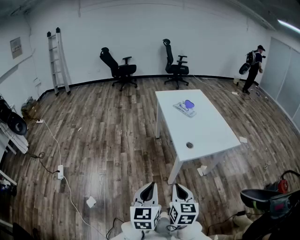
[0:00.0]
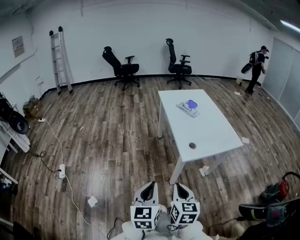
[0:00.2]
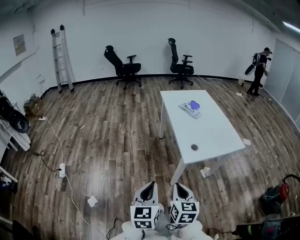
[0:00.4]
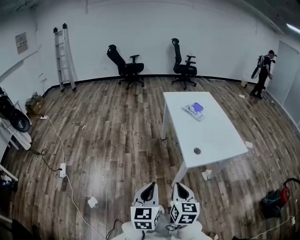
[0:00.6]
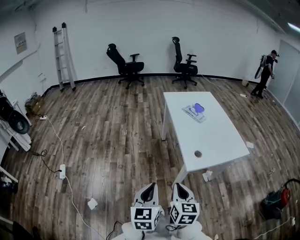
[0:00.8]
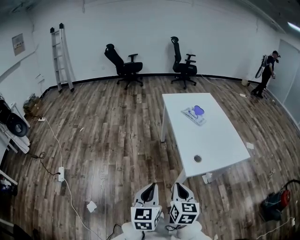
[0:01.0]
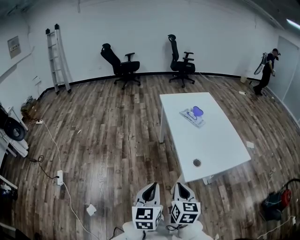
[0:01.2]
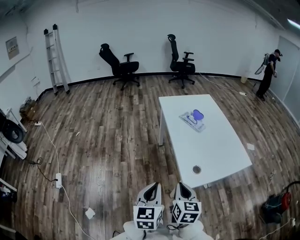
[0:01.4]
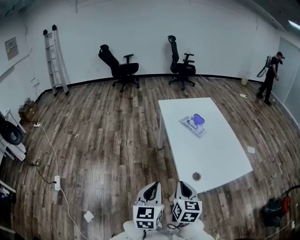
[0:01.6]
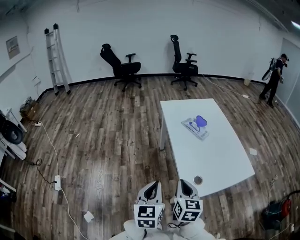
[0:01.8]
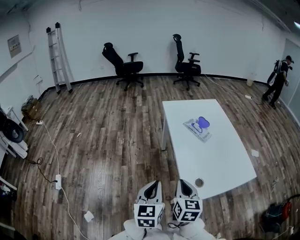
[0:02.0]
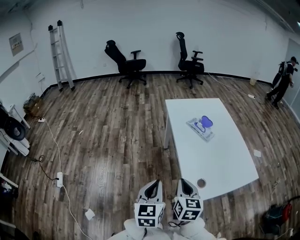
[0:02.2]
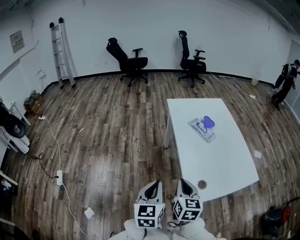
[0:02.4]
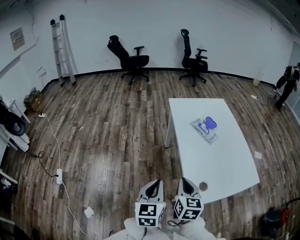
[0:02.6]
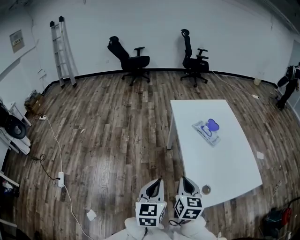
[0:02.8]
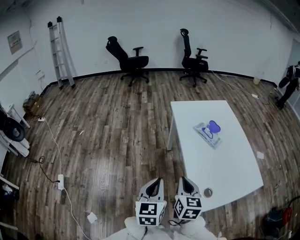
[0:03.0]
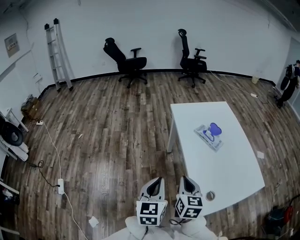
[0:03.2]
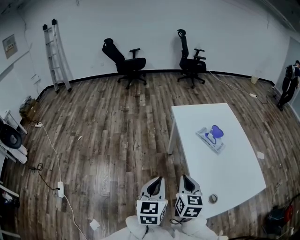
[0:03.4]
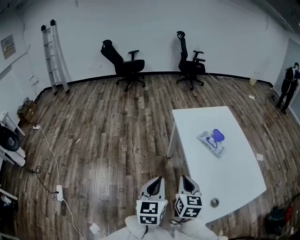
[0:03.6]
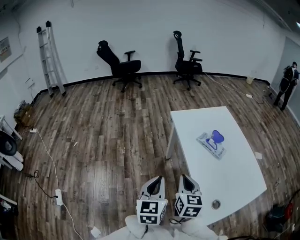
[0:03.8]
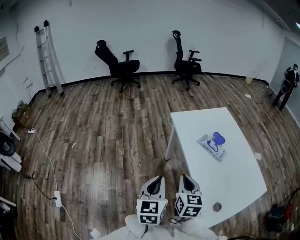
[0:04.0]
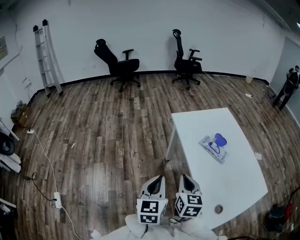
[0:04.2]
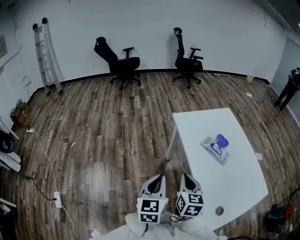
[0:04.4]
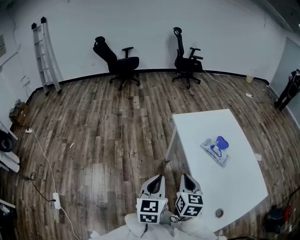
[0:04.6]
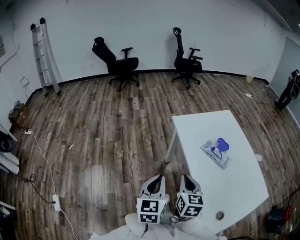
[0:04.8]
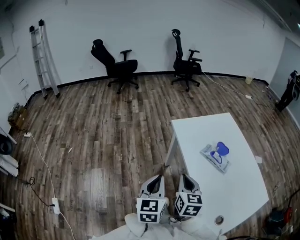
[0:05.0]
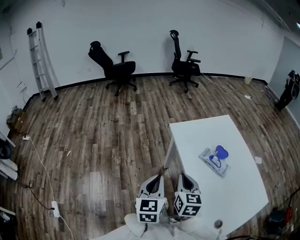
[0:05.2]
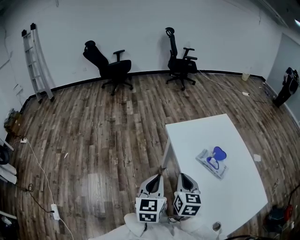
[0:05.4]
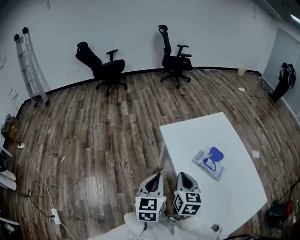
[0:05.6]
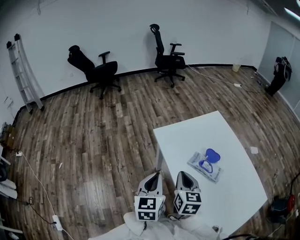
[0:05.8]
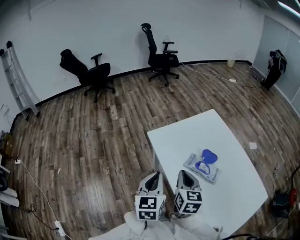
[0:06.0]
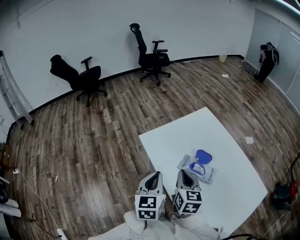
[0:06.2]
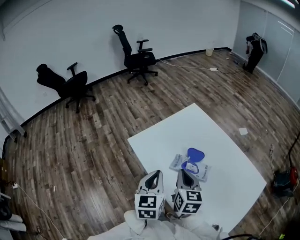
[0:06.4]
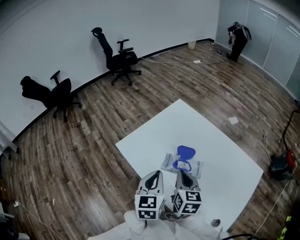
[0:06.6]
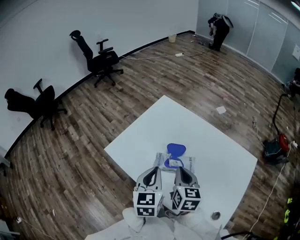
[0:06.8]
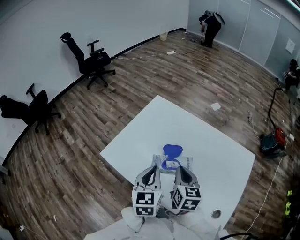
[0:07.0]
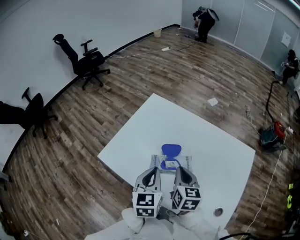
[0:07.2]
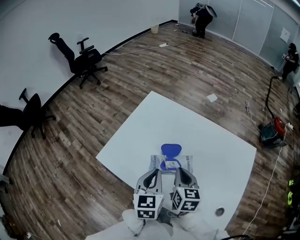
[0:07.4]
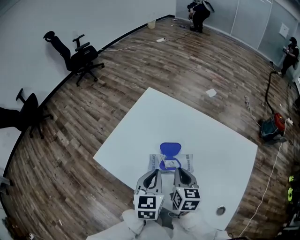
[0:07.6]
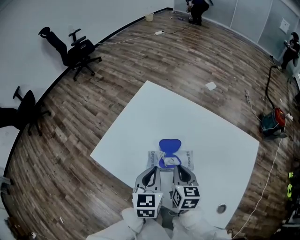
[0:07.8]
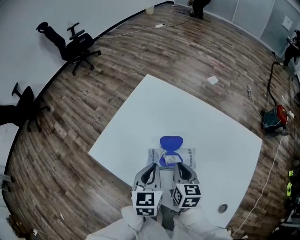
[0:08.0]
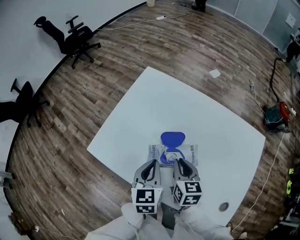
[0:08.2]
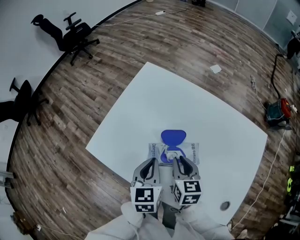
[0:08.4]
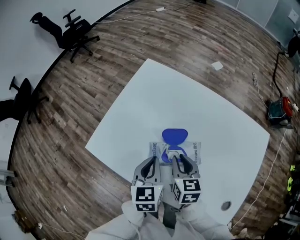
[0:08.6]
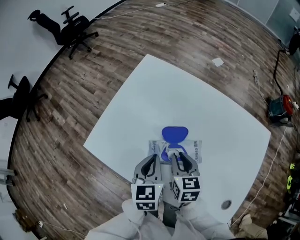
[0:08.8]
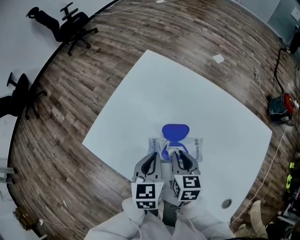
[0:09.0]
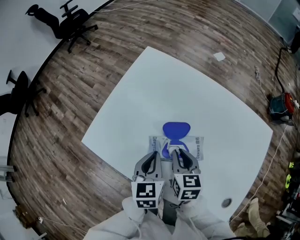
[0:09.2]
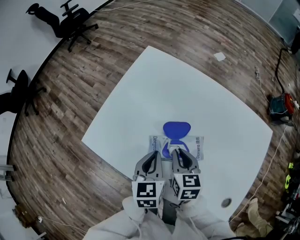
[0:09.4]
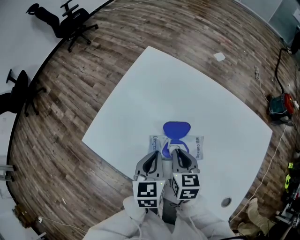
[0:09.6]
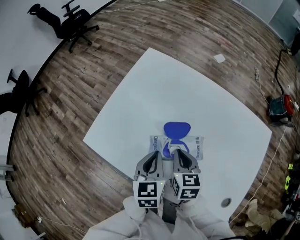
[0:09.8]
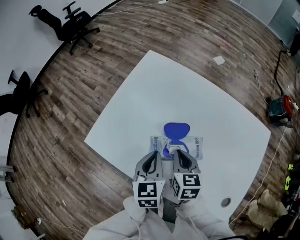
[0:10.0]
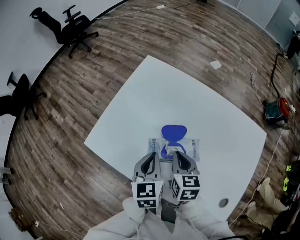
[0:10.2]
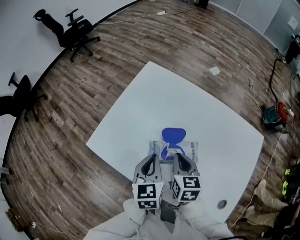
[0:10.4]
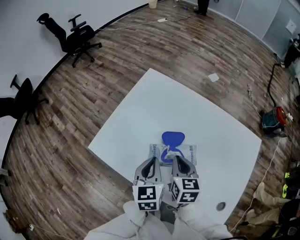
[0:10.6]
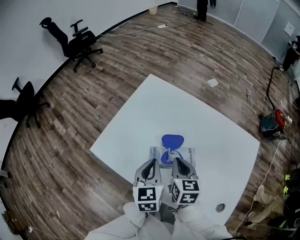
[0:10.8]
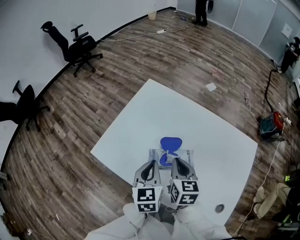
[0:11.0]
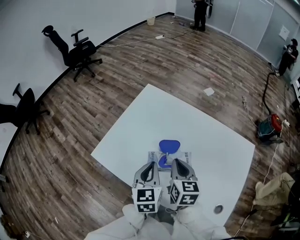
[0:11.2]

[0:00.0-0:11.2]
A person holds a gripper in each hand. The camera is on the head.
0:00.0 to 0:01.6: The two grippers go roughly 25 cm forward.
0:01.6 to 0:03.2: The two grippers go about 15 cm forward and to the left.
0:03.2 to 0:04.8: Both grippers move forward, approximately 15 cm.
0:04.8 to 0:06.4: Both grippers travel together forward and to the right, approximately 25 cm. The left gripper changes its angle by about 20 degrees. The right gripper rotates some 20 degrees.
0:06.4 to 0:08.0: The right gripper travels downward, to the right and forward by roughly 15 cm, and rotates roughly 20 degrees; the left gripper is displaced forward, to the right and downward by roughly 15 cm, and rotates about 30 degrees.
0:08.0 to 0:09.6: The left gripper travels downward by approximately 5 cm.
0:09.6 to 0:11.2: The grippers both shift upward by roughly 10 cm.

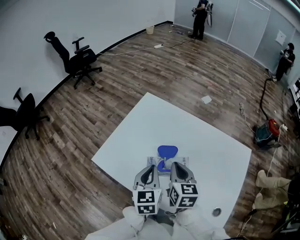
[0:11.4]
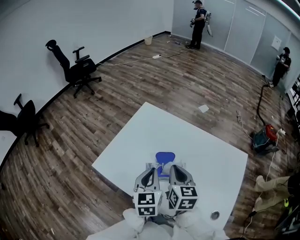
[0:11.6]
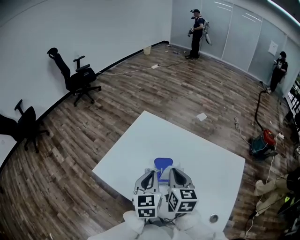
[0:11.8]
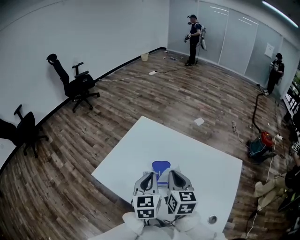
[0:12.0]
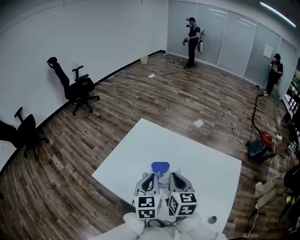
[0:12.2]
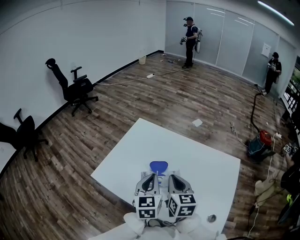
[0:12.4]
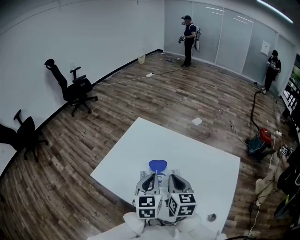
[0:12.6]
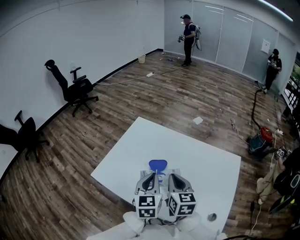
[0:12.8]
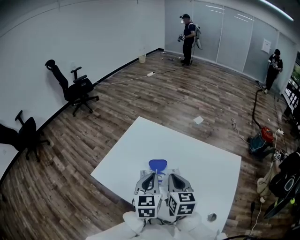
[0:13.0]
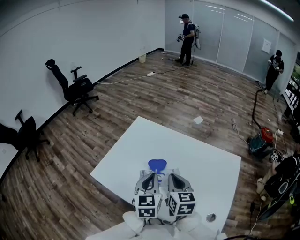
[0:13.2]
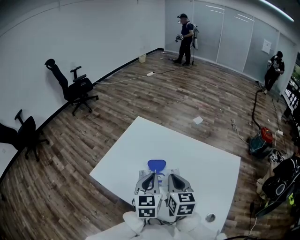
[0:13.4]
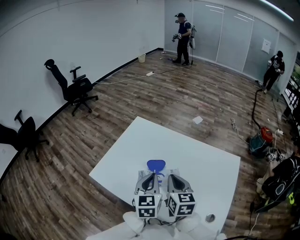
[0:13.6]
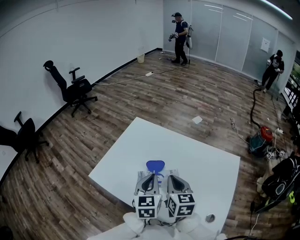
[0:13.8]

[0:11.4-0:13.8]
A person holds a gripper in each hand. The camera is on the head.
0:11.4 to 0:12.6: The left gripper ends up approximately 5 cm from where it was. The right gripper changes place by about 5 cm.
0:12.6 to 0:13.8: The grippers move only a little.

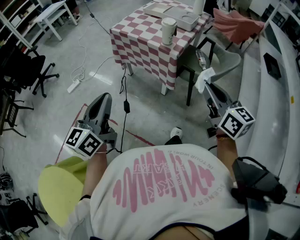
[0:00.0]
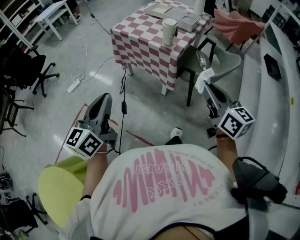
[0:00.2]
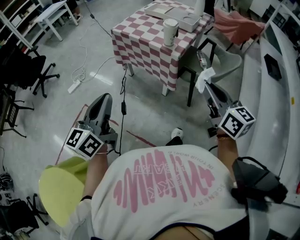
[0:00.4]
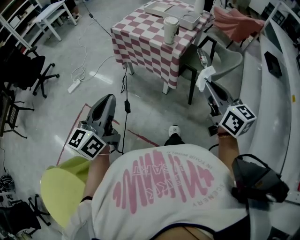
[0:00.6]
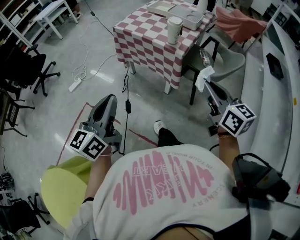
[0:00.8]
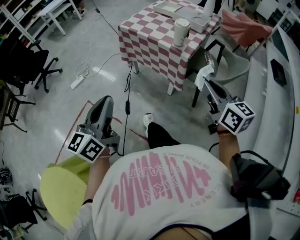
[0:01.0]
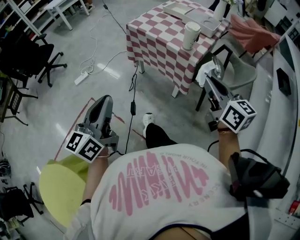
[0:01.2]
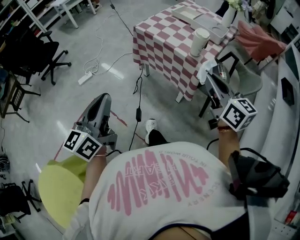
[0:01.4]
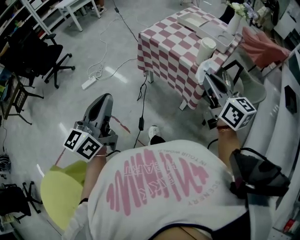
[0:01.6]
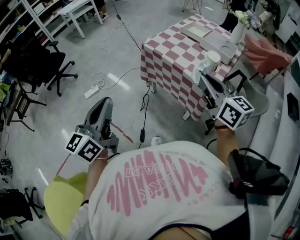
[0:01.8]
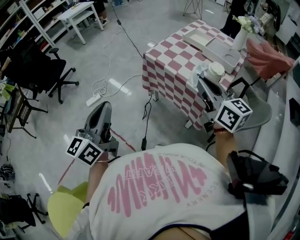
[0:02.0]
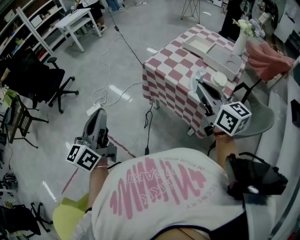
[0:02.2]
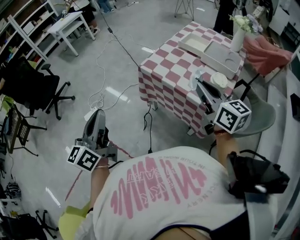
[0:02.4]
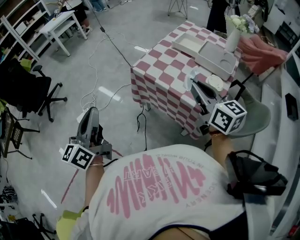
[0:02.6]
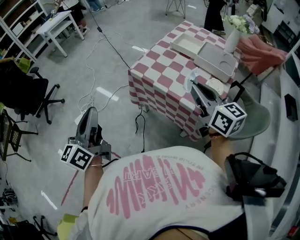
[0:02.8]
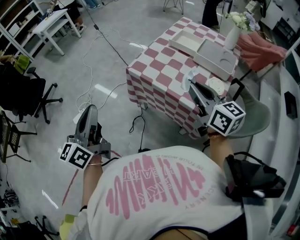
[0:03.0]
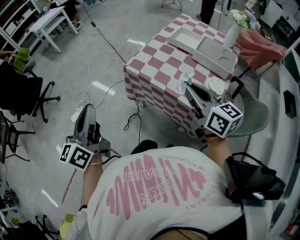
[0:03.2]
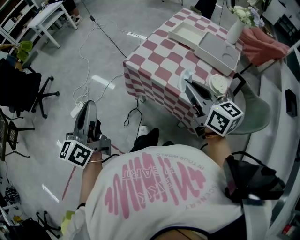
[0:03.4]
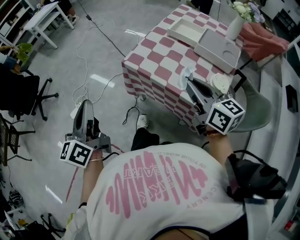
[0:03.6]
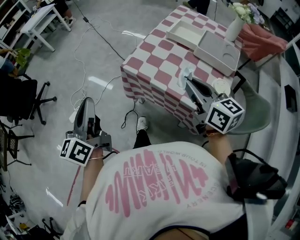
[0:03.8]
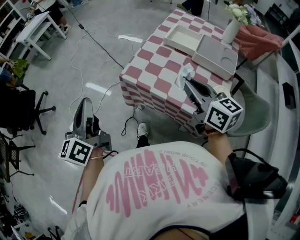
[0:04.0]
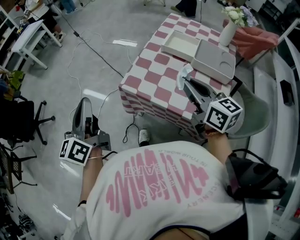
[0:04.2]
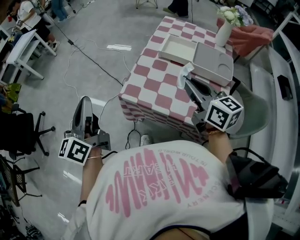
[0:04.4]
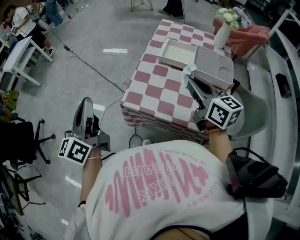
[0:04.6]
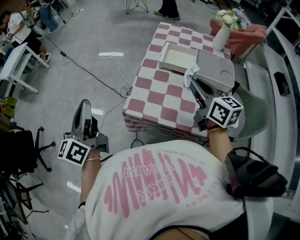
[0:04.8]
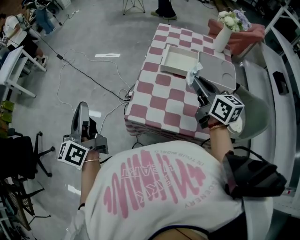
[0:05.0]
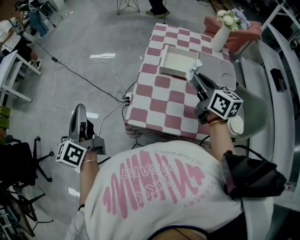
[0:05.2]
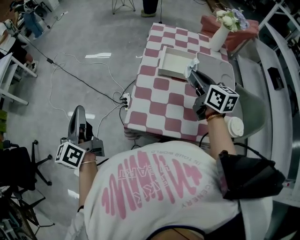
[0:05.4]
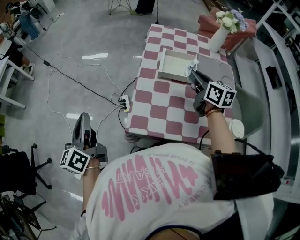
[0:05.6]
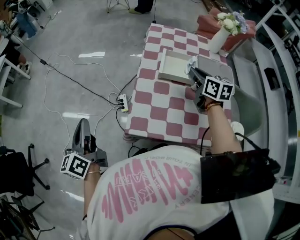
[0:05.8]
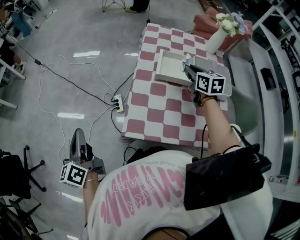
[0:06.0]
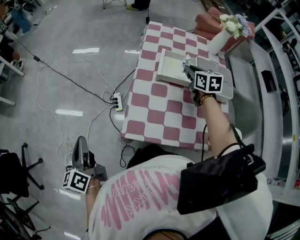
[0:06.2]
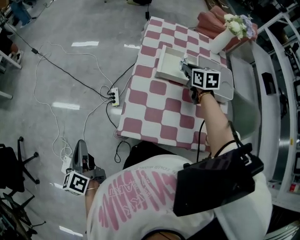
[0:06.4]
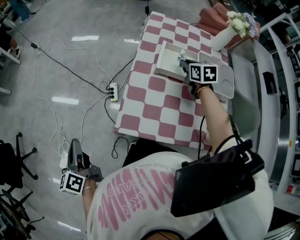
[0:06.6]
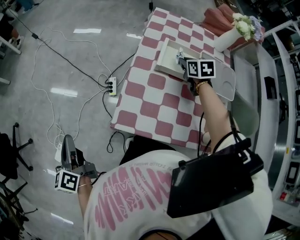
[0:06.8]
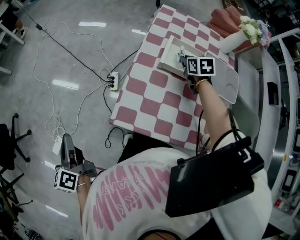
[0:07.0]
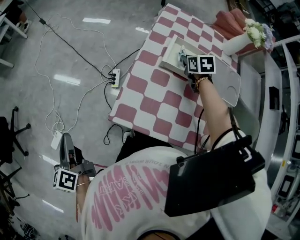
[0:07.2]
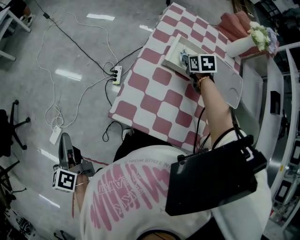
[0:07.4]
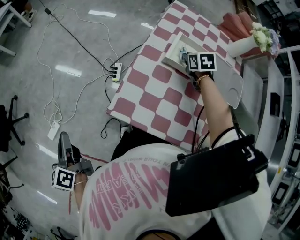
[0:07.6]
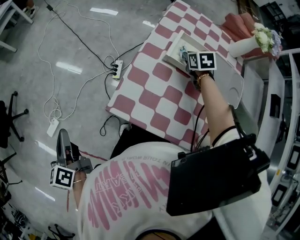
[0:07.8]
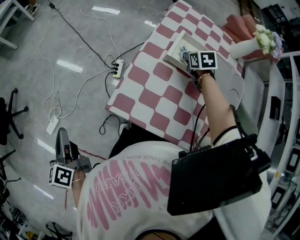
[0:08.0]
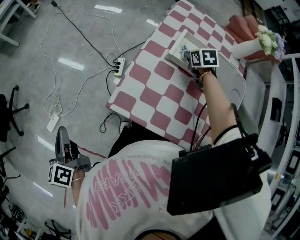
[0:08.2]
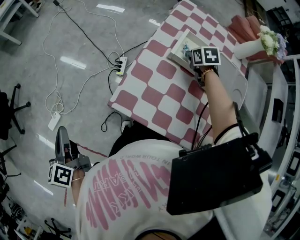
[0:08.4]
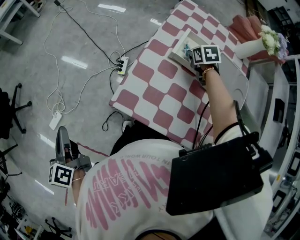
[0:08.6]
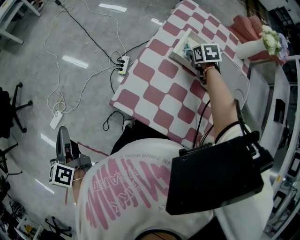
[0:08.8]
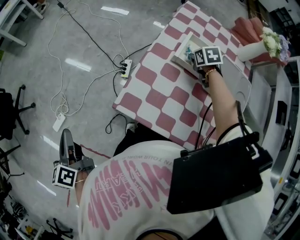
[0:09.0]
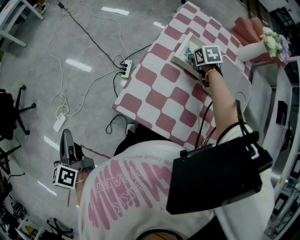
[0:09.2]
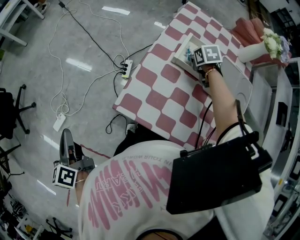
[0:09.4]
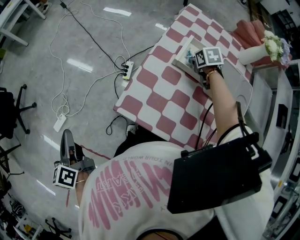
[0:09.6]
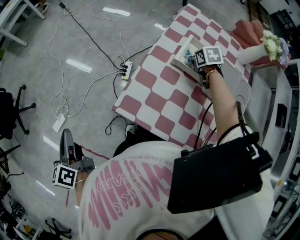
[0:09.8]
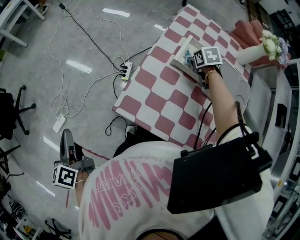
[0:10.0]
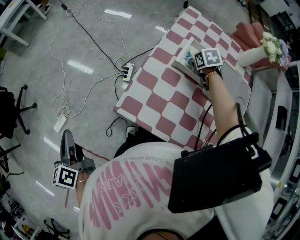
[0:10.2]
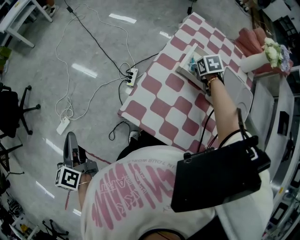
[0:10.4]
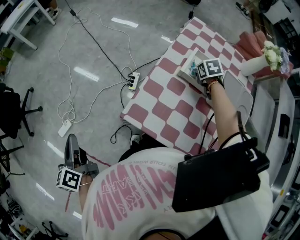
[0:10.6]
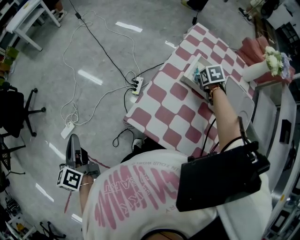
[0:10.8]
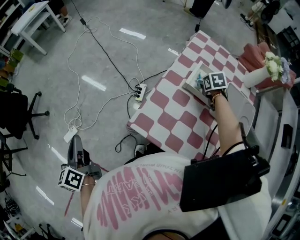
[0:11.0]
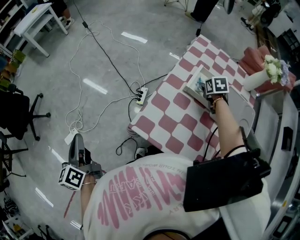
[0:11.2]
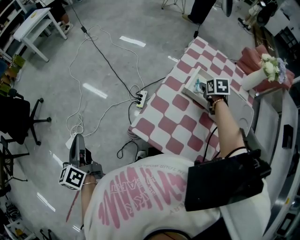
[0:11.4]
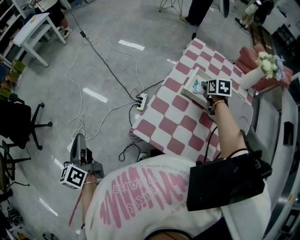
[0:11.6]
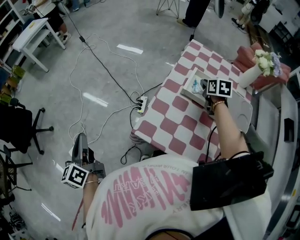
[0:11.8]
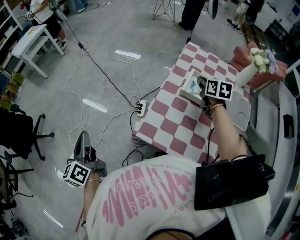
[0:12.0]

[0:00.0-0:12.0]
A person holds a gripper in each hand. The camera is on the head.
0:00.0 to 0:01.6: The left gripper is displaced to the left and forward by roughly 15 cm; the right gripper goes approximately 25 cm forward and to the left.
0:01.6 to 0:03.0: Both grippers move forward, approximately 30 cm.
0:03.0 to 0:04.4: Both grippers move forward, approximately 20 cm.
0:04.4 to 0:06.0: The left gripper moves forward, downward and to the left, roughly 25 cm. Meanwhile the right gripper goes some 25 cm forward, and swivels approximately 30 degrees.
0:06.0 to 0:07.6: The left gripper goes roughly 10 cm backward, and rotates approximately 20 degrees. The right gripper heads downward and forward, covering roughly 15 cm, and rotates approximately 30 degrees.
0:07.6 to 0:09.0: The grippers make only small movements.
0:09.0 to 0:10.4: The two grippers keep their place.
0:10.4 to 0:12.0: The right gripper travels upward by roughly 15 cm, and angles its fingers upward, by approximately 30 degrees. Meanwhile the left gripper travels upward by about 5 cm.
